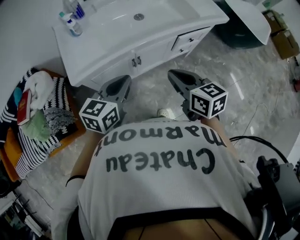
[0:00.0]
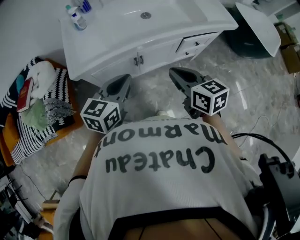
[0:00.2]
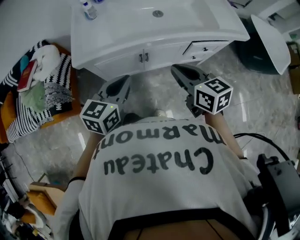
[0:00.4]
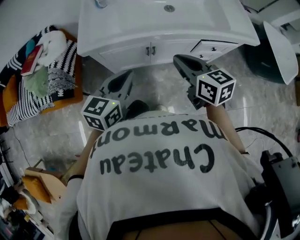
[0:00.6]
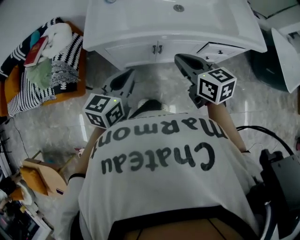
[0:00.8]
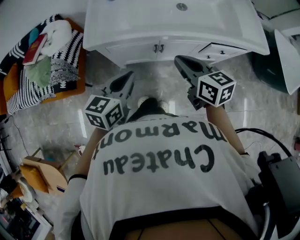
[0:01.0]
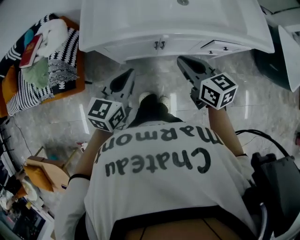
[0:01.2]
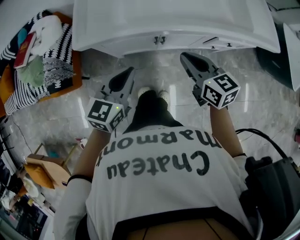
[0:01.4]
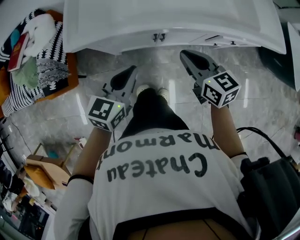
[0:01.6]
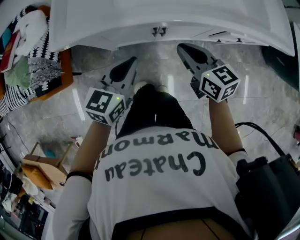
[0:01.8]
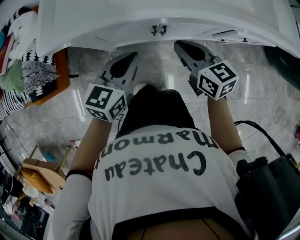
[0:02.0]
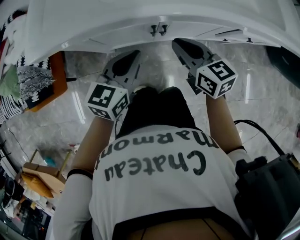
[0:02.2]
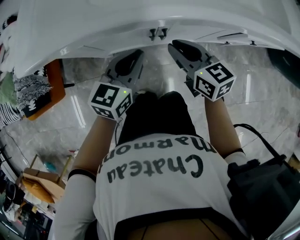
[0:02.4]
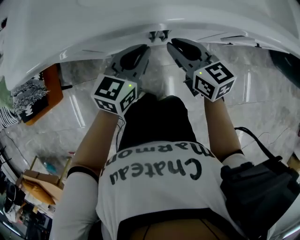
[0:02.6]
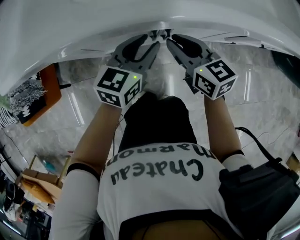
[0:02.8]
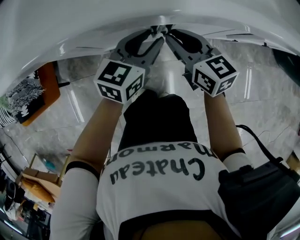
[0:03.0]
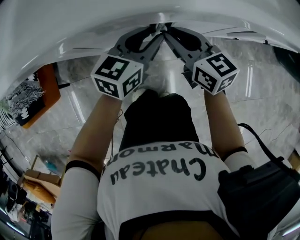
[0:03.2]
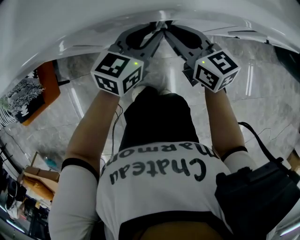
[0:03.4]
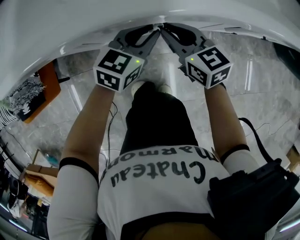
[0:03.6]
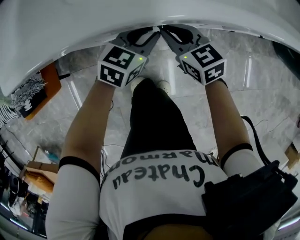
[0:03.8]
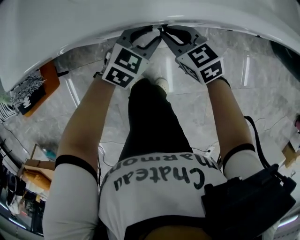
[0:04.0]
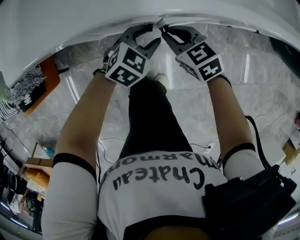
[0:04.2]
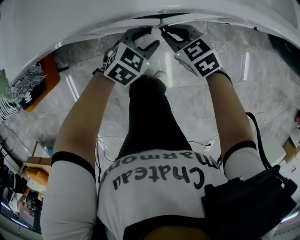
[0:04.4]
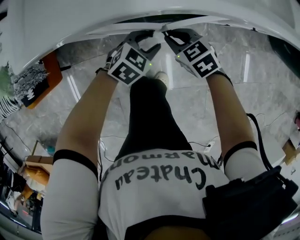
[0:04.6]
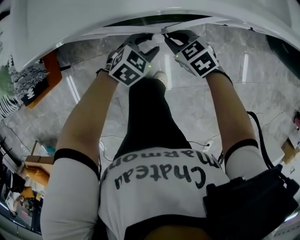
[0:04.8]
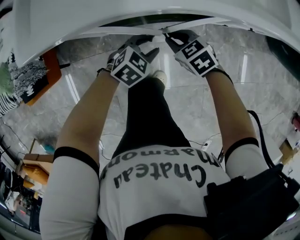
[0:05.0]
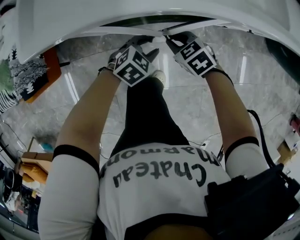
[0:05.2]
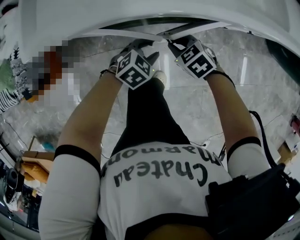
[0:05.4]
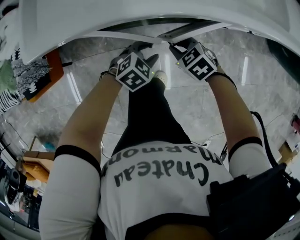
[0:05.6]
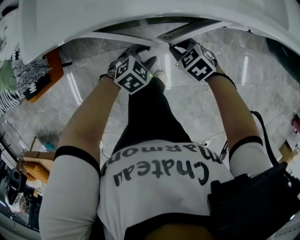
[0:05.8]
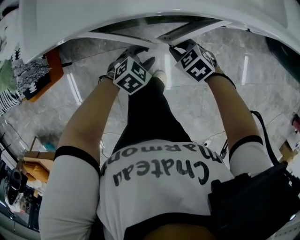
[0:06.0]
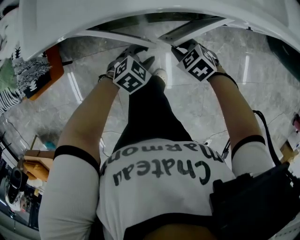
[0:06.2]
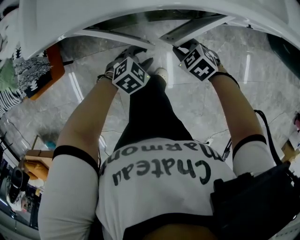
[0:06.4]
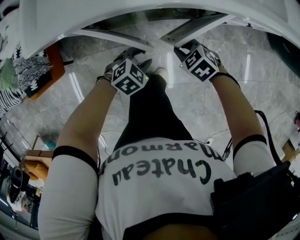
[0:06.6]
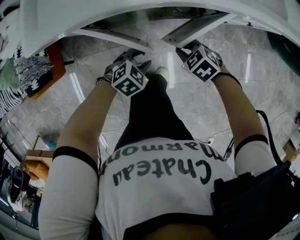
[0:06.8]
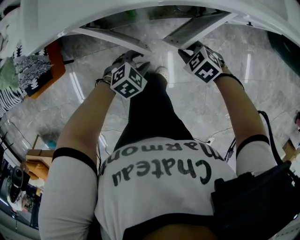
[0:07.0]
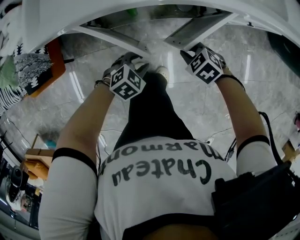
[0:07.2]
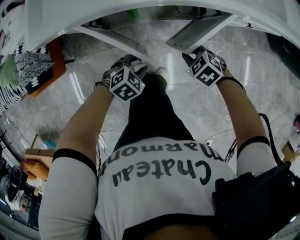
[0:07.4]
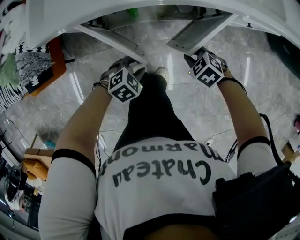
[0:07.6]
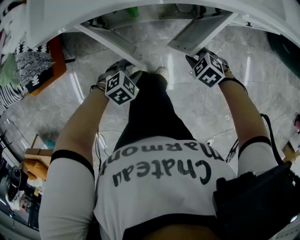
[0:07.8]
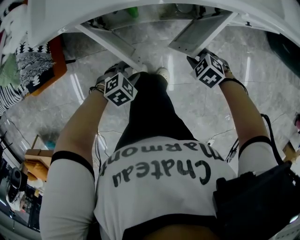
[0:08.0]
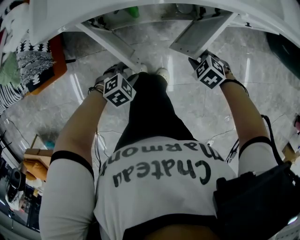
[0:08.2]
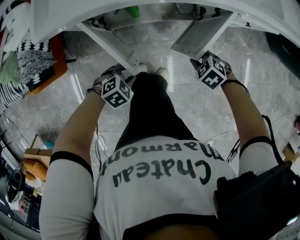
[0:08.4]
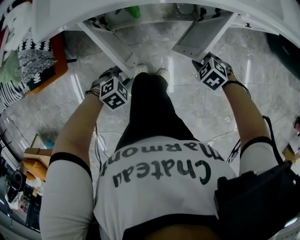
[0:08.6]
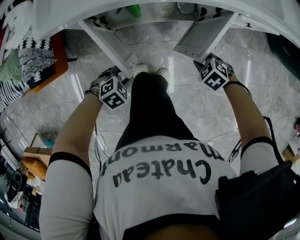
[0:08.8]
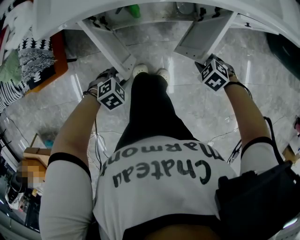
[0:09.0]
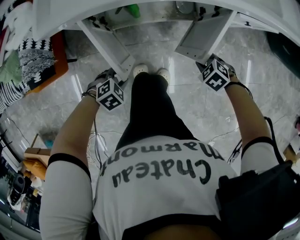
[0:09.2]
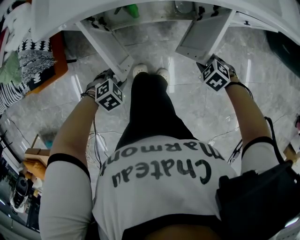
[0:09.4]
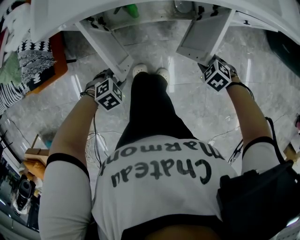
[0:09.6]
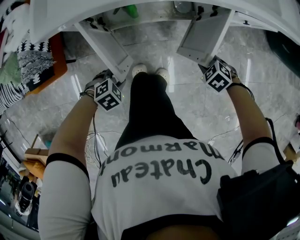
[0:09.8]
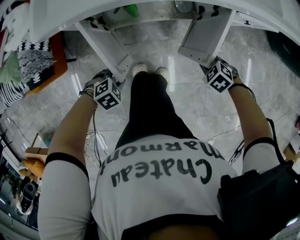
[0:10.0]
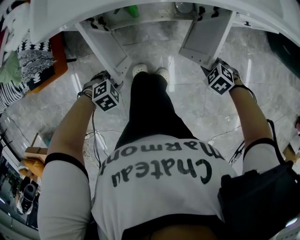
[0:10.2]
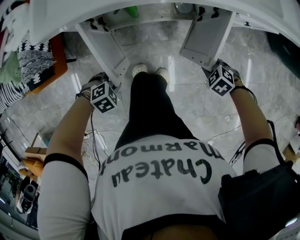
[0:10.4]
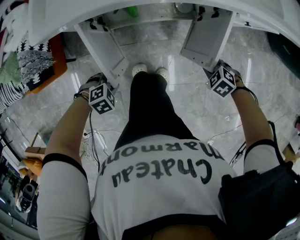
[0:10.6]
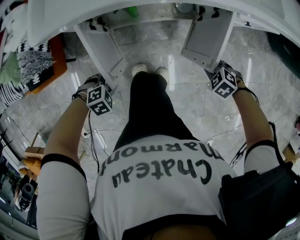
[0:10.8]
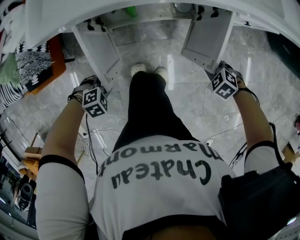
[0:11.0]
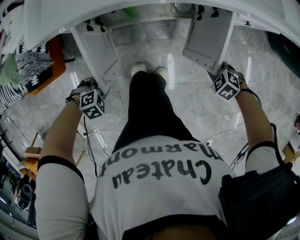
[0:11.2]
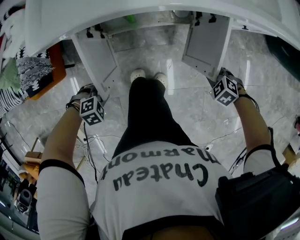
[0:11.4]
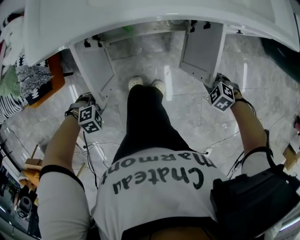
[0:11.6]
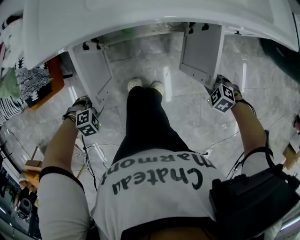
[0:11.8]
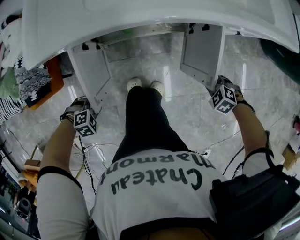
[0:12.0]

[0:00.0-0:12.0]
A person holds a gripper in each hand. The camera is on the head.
0:00.0 to 0:01.6: The left gripper is displaced downward by some 10 cm, and swivels some 20 degrees, while the right gripper goes roughly 15 cm downward and forward, and rotates approximately 20 degrees.
0:01.6 to 0:03.0: The grippers both shift downward and forward by some 25 cm. The left gripper opens.
0:03.0 to 0:04.4: The right gripper turns by about 30 degrees. The left gripper shifts roughly 5 cm backward, and turns by about 30 degrees.
0:04.4 to 0:06.0: The left gripper ends up approximately 5 cm from where it was. The right gripper shifts by some 5 cm.
0:06.0 to 0:07.6: The left gripper changes place by about 10 cm, while the right gripper changes place by roughly 5 cm.
0:07.6 to 0:09.0: The right gripper ends up roughly 5 cm from where it was; the left gripper shifts by about 10 cm.
0:09.0 to 0:10.4: The grippers move only a little.
0:10.4 to 0:12.0: The right gripper ends up approximately 5 cm from where it was. Meanwhile the left gripper changes place by roughly 5 cm.

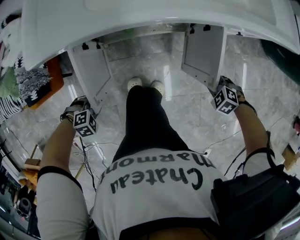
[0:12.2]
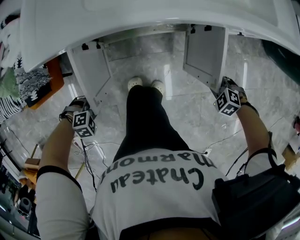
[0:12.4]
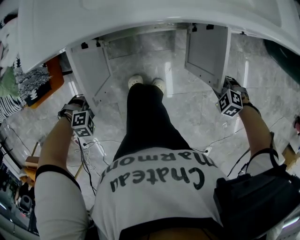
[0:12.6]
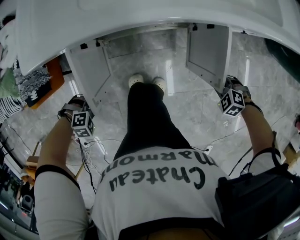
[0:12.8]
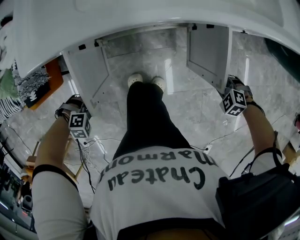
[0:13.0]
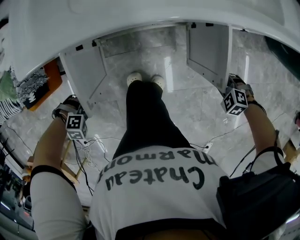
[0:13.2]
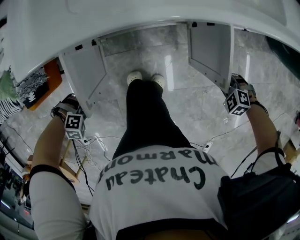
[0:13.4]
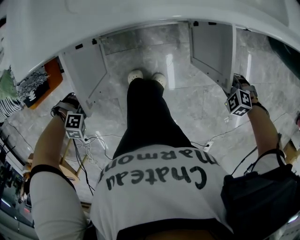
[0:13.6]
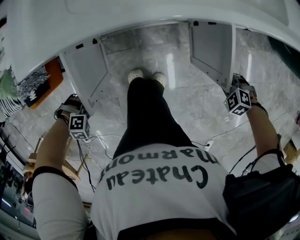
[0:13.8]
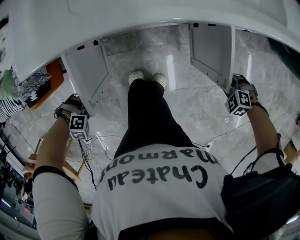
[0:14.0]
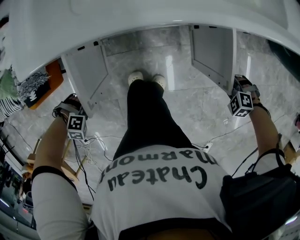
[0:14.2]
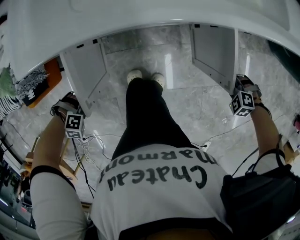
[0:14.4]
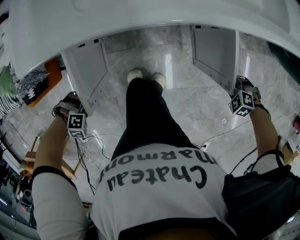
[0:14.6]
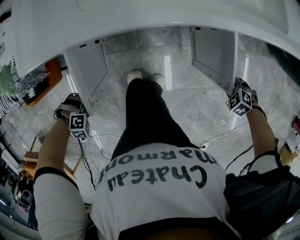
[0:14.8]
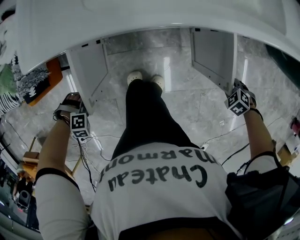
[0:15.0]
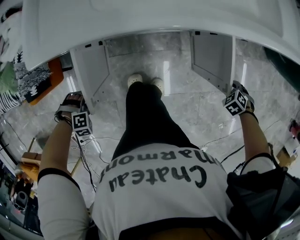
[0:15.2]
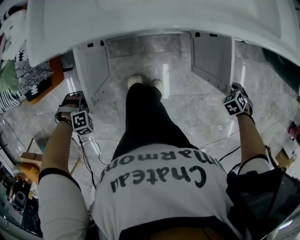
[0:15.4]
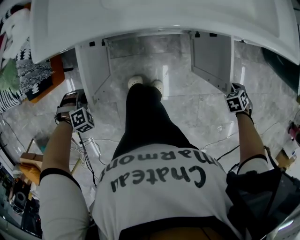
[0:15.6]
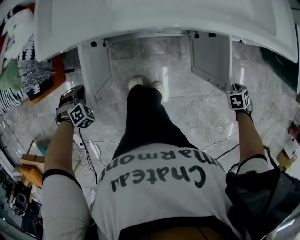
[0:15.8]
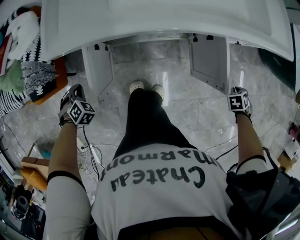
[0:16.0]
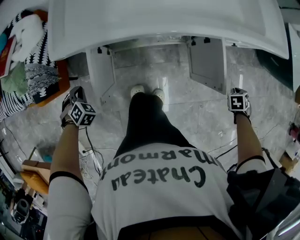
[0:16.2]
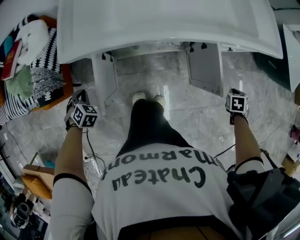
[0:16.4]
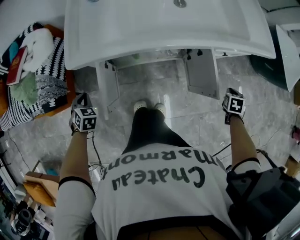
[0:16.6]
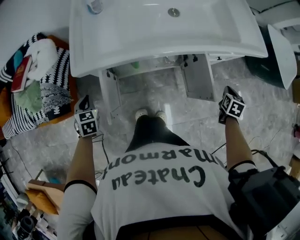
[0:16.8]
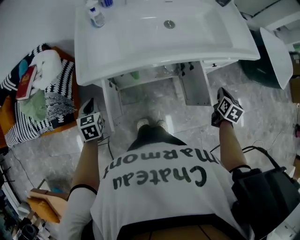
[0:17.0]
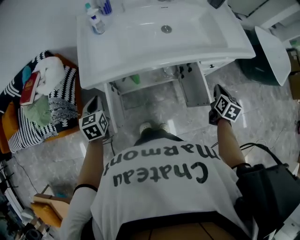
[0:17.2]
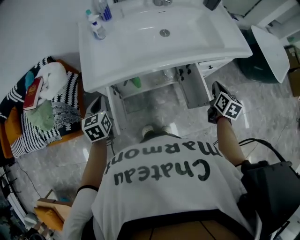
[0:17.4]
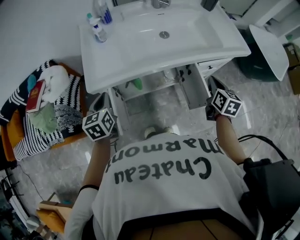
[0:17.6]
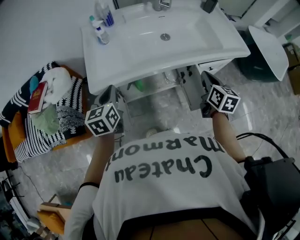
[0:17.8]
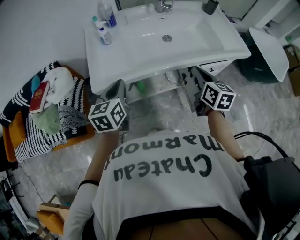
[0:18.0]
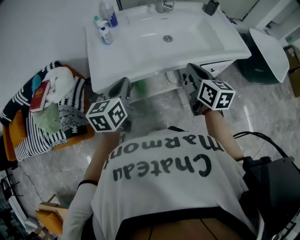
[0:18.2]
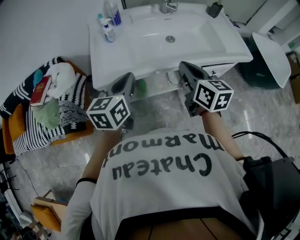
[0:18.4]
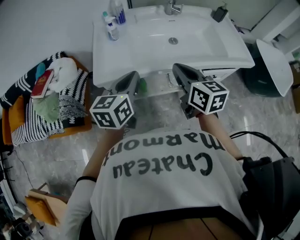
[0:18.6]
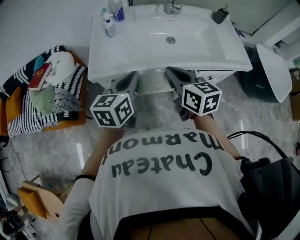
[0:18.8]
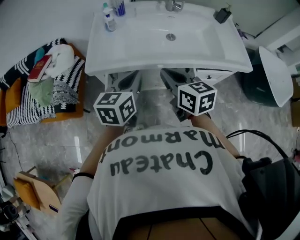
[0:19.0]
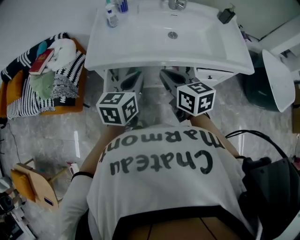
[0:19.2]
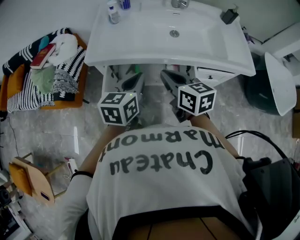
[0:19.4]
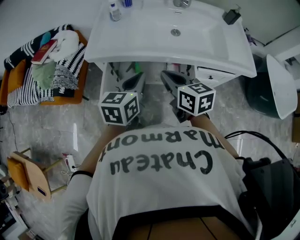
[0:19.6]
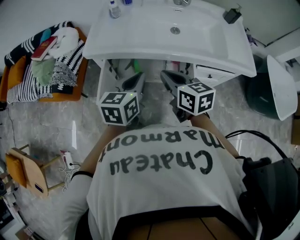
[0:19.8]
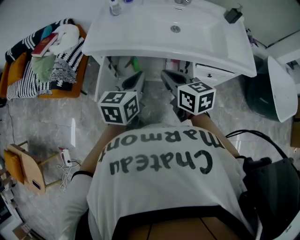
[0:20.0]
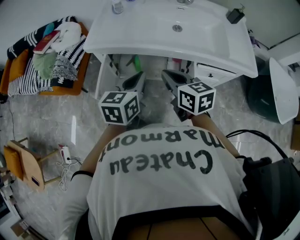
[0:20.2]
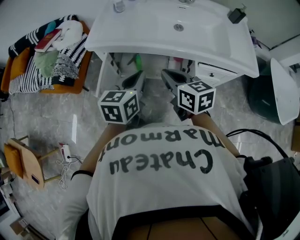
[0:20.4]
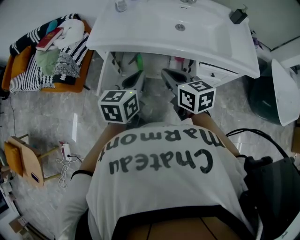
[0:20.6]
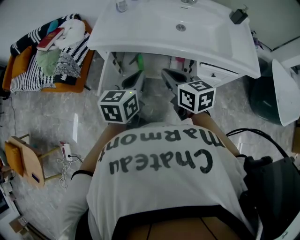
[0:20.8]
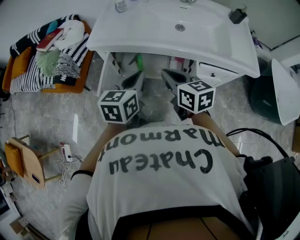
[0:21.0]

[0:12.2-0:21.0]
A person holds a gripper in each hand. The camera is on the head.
0:12.2 to 0:13.6: The left gripper changes its angle by about 30 degrees; the right gripper shifts by approximately 5 cm.
0:13.6 to 0:15.2: The left gripper rotates roughly 20 degrees, while the right gripper shifts by approximately 5 cm, and rotates about 30 degrees.
0:15.2 to 0:16.6: The left gripper moves some 20 cm, twists approximately 70 degrees counterclockwise, seen from behind, and closes its fingers; the right gripper heads upward, covering approximately 15 cm, and rotates around the line of its fingers by roughly 60 degrees, clockwise from behind.
0:16.6 to 0:18.0: The left gripper shifts about 35 cm upward, to the right and forward, and points its fingers roughly 40 degrees further upward. Meanwhile the right gripper shifts approximately 35 cm to the left and upward, and tilts its fingers roughly 40 degrees upward.
0:18.0 to 0:19.6: The left gripper goes about 20 cm to the right and backward, while the right gripper travels to the left and backward by about 10 cm, and changes its angle by approximately 40 degrees.
0:19.6 to 0:21.0: The grippers move only a little.

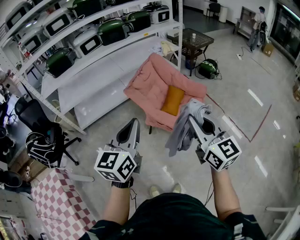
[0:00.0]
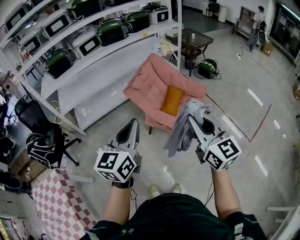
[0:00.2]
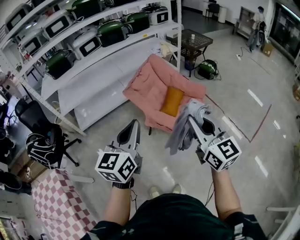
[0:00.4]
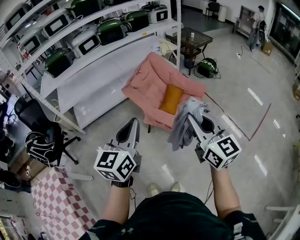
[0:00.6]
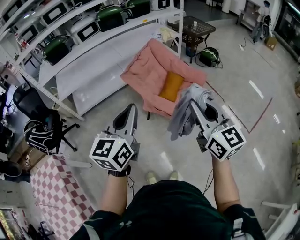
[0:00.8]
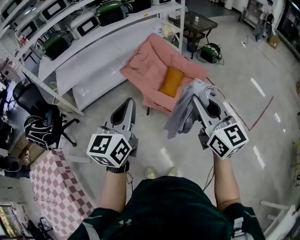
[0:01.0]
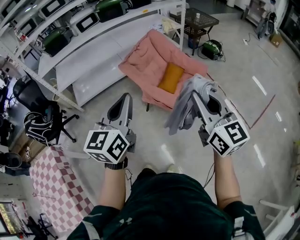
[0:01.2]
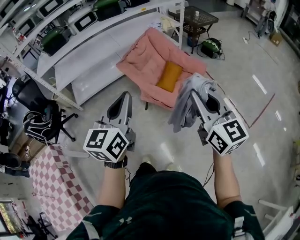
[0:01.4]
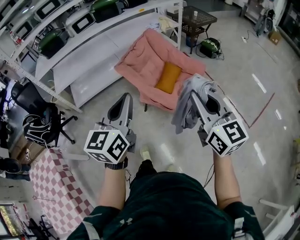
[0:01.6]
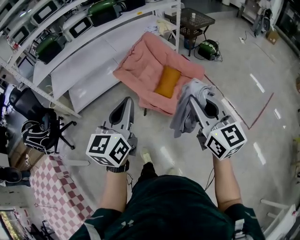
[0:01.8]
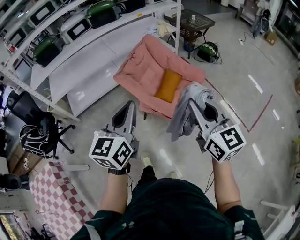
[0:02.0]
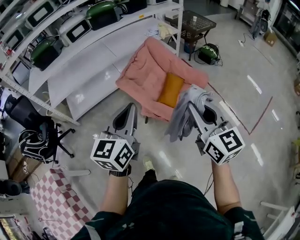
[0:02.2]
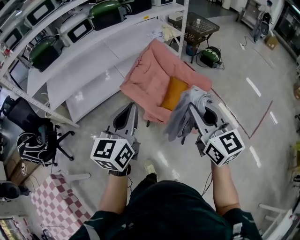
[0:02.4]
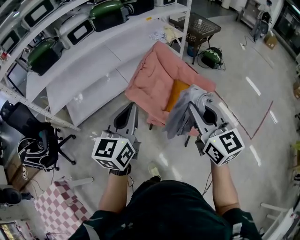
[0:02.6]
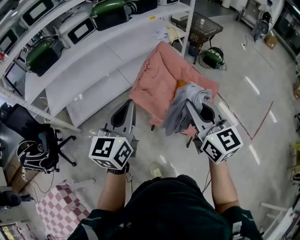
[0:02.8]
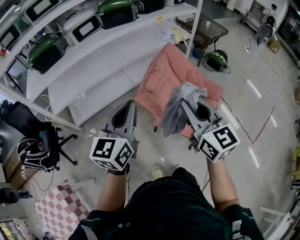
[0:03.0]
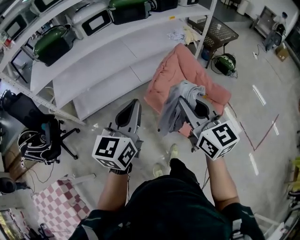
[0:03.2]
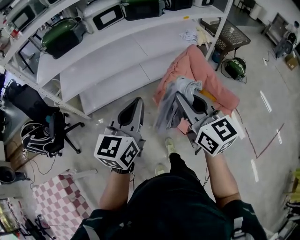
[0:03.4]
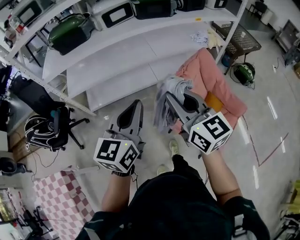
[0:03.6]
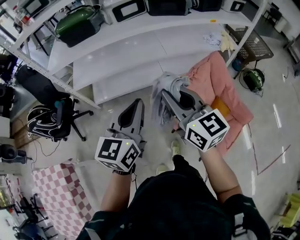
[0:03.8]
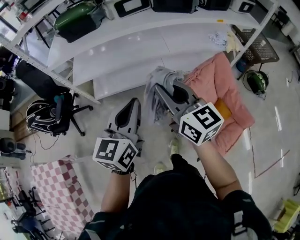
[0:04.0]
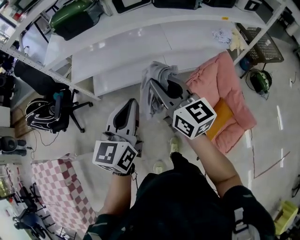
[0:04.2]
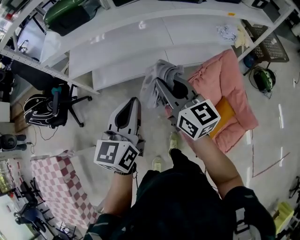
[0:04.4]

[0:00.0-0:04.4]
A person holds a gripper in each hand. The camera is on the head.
0:00.0 to 0:01.4: The right gripper heads to the right, covering about 5 cm.
0:01.4 to 0:03.0: The two grippers go about 35 cm forward and to the left.
0:03.0 to 0:04.4: The left gripper ends up roughly 25 cm from where it was, and swivels about 30 degrees, while the right gripper ends up roughly 35 cm from where it was, and changes its angle by approximately 30 degrees.
